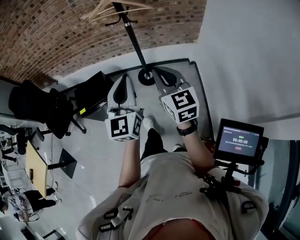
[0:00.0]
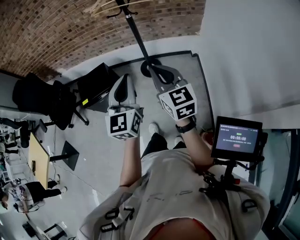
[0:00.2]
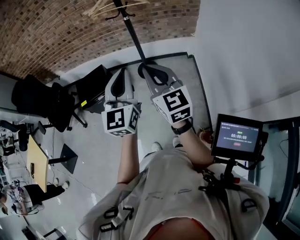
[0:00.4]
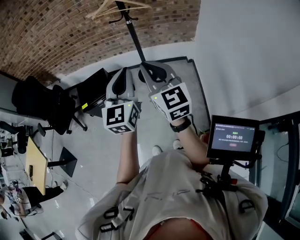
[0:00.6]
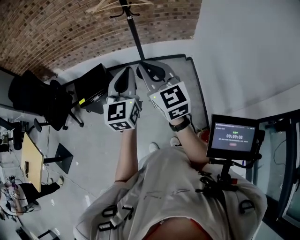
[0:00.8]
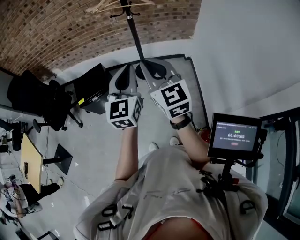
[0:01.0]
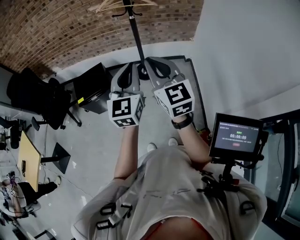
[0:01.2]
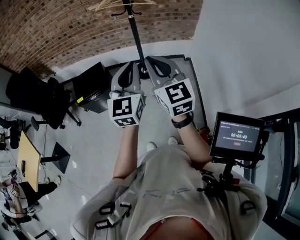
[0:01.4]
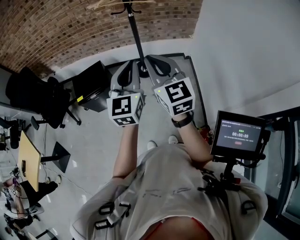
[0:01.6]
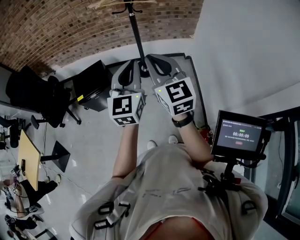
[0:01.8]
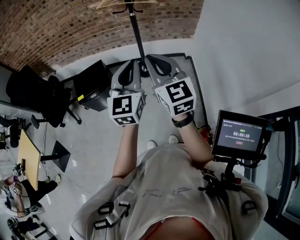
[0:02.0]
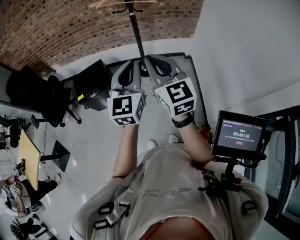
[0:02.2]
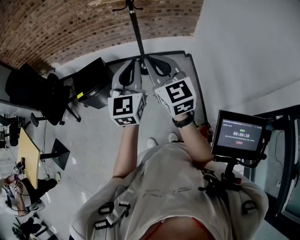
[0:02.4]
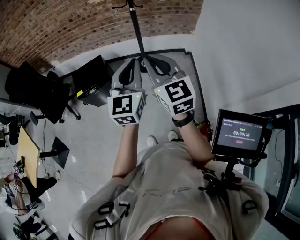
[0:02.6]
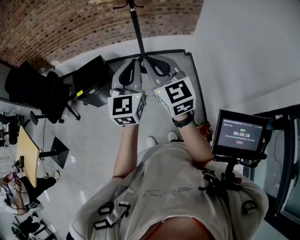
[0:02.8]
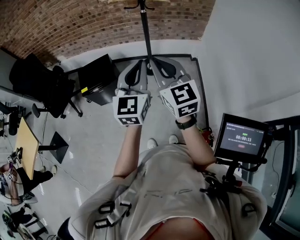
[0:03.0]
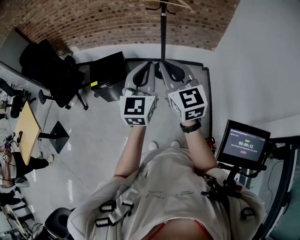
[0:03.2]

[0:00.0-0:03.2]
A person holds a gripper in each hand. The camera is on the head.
0.0 to 1.6 s: The left gripper moves backward, roughly 5 cm. The right gripper goes roughly 15 cm backward, to the left and upward.
1.6 to 3.2 s: The grippers stay close to where they were, moving slightly.

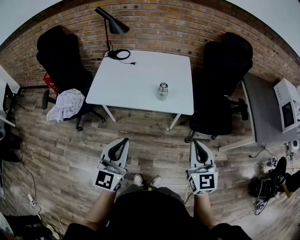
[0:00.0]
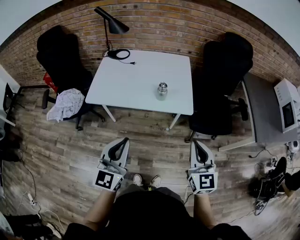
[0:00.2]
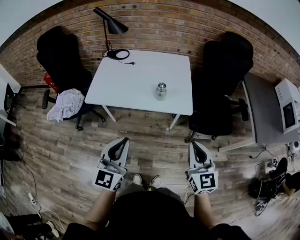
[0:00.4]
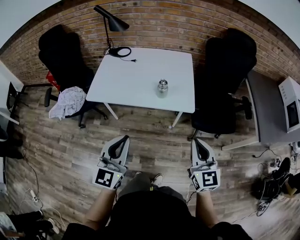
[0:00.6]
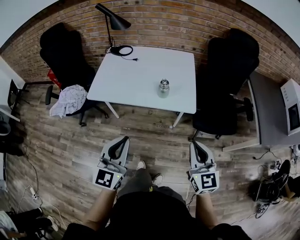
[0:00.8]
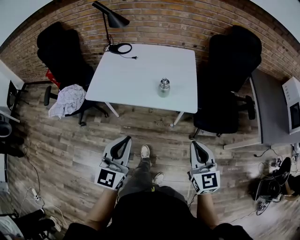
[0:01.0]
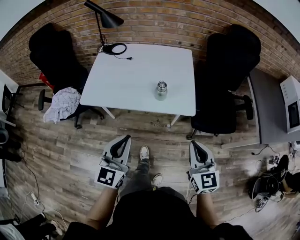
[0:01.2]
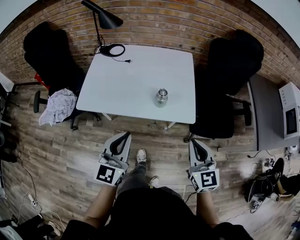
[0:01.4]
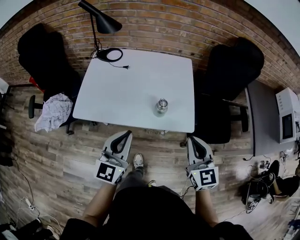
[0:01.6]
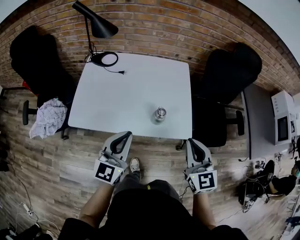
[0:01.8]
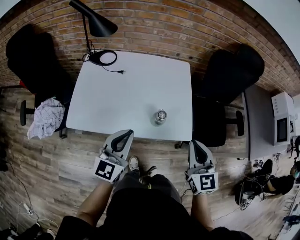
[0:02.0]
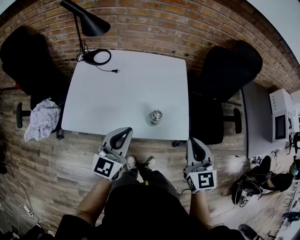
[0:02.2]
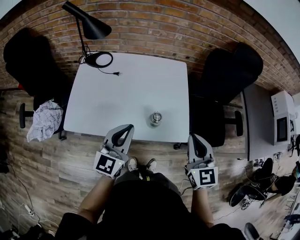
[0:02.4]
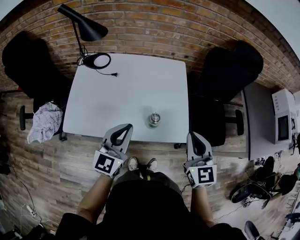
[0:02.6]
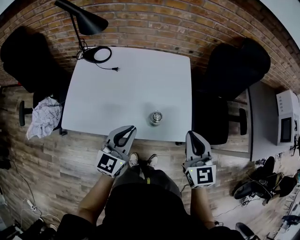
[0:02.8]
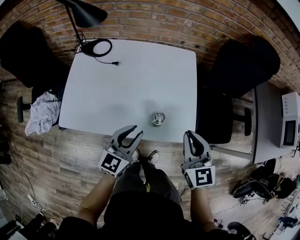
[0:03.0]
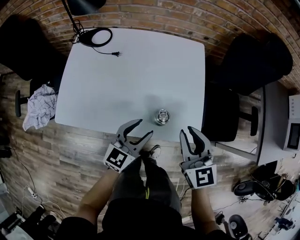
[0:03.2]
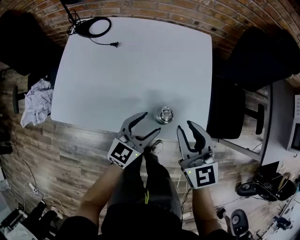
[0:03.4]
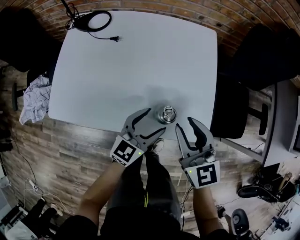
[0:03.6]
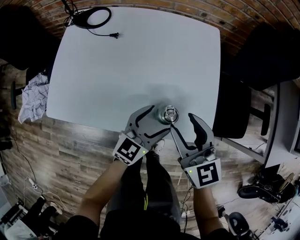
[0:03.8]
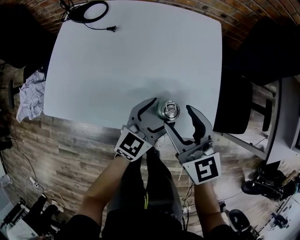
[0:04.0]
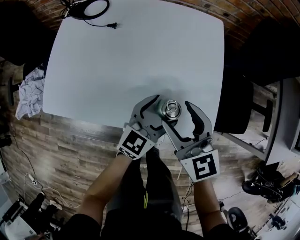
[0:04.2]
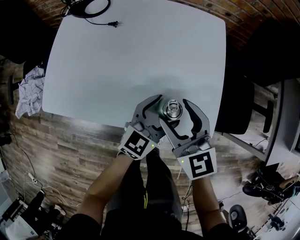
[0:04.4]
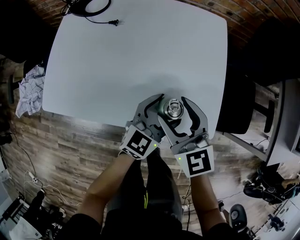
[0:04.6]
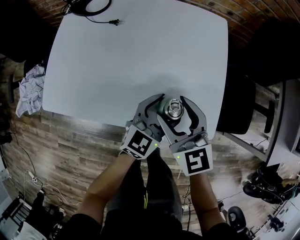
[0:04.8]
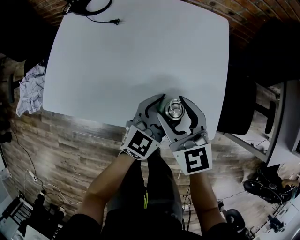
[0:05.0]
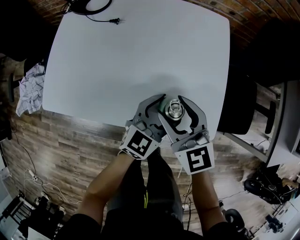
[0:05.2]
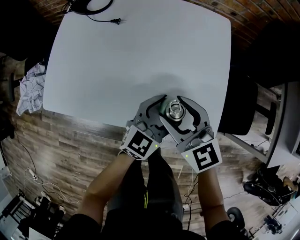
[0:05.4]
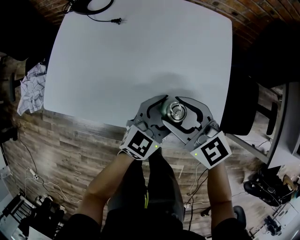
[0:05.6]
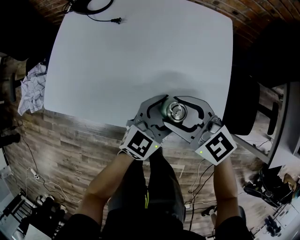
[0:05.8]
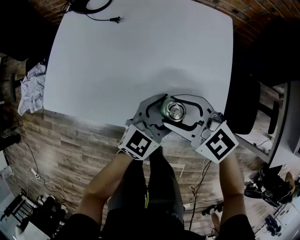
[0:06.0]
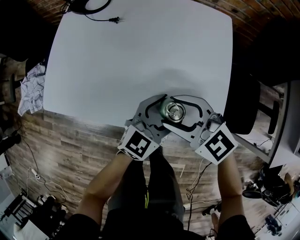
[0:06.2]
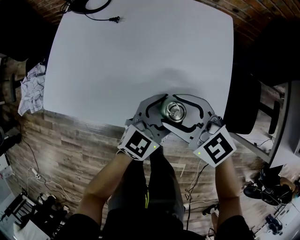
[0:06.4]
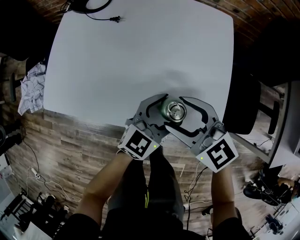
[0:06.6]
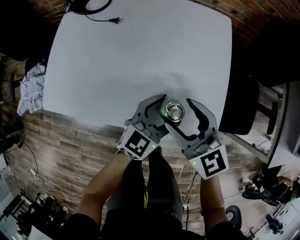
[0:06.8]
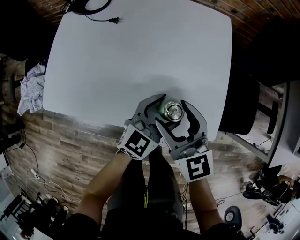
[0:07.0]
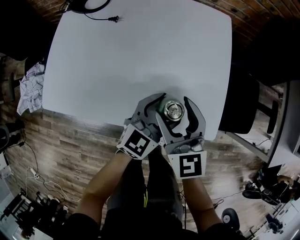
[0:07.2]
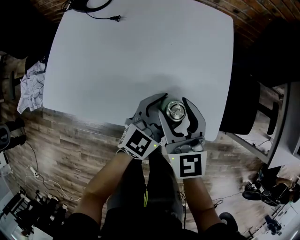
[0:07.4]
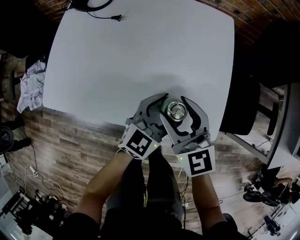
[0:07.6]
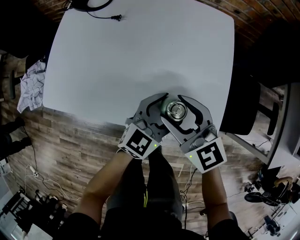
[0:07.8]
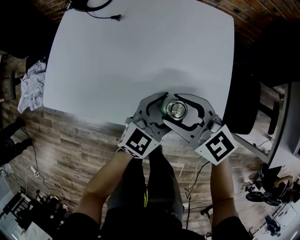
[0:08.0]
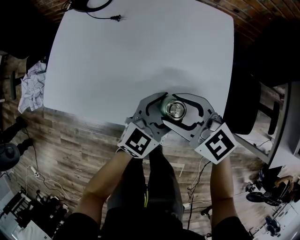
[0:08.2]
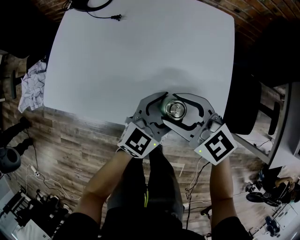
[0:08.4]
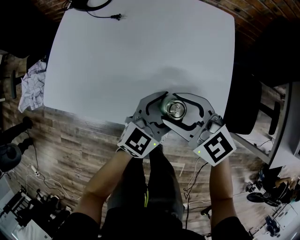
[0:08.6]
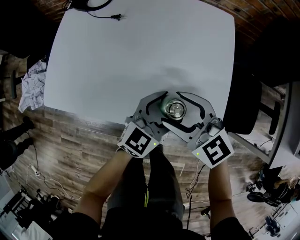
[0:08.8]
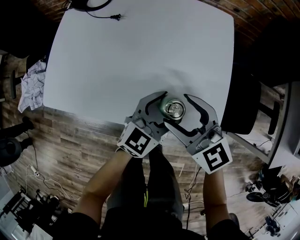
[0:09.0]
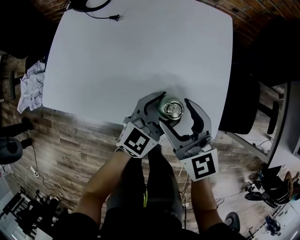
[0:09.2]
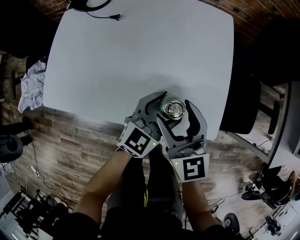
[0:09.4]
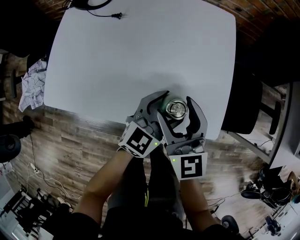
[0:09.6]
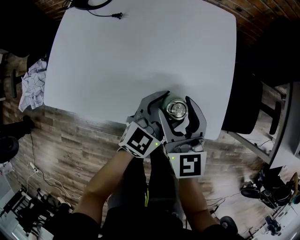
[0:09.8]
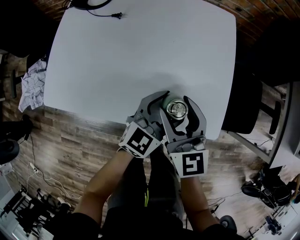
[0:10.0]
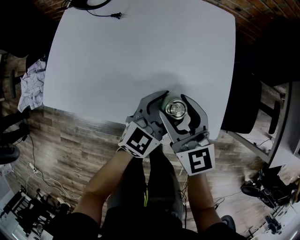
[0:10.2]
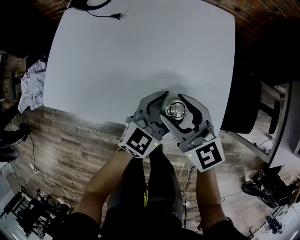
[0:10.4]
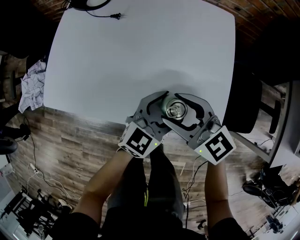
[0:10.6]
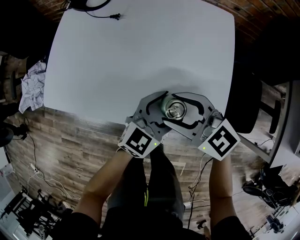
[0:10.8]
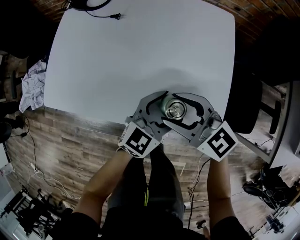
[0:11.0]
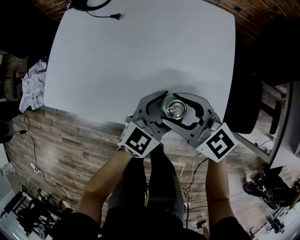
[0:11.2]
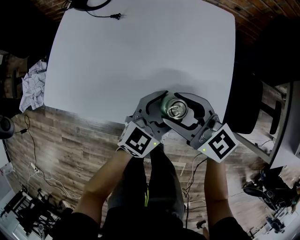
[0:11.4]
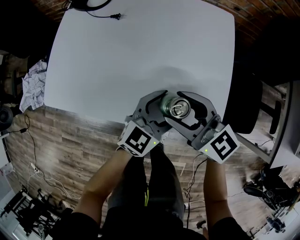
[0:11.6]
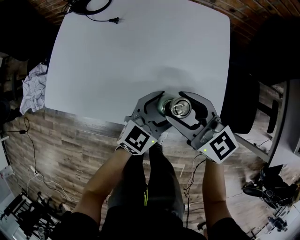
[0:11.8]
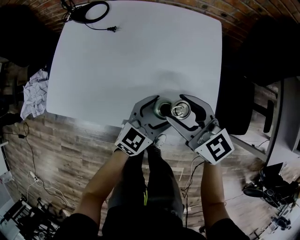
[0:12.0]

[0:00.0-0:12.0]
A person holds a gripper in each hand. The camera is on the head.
0.0 to 1.6 s: The grippers both shift forward by some 20 cm.
1.6 to 3.0 s: The left gripper heads forward and downward, covering approximately 15 cm. The right gripper travels forward by approximately 15 cm.
3.0 to 4.4 s: The left gripper is displaced downward, to the right and forward by about 15 cm, and opens up; the right gripper goes about 15 cm downward, to the left and forward, and opens.
4.4 to 6.0 s: The right gripper changes its angle by some 40 degrees.
6.0 to 7.6 s: The right gripper swivels roughly 40 degrees.

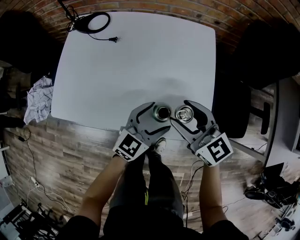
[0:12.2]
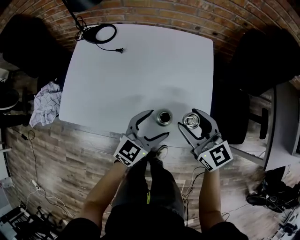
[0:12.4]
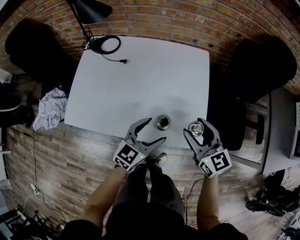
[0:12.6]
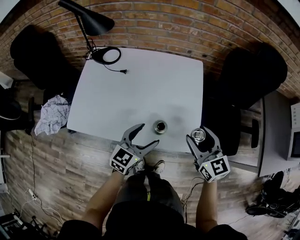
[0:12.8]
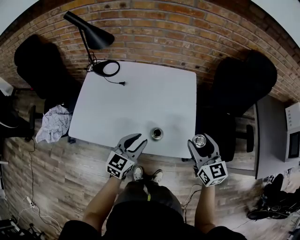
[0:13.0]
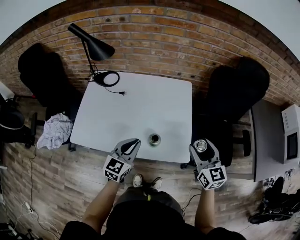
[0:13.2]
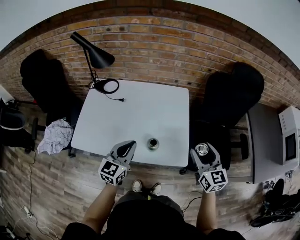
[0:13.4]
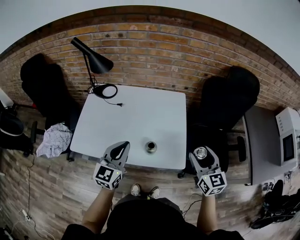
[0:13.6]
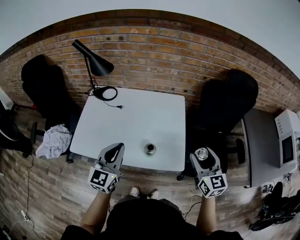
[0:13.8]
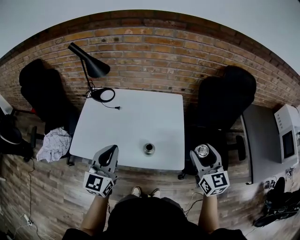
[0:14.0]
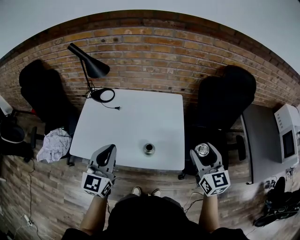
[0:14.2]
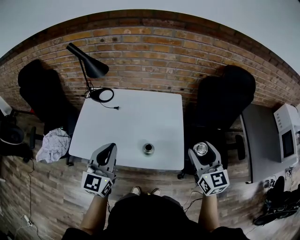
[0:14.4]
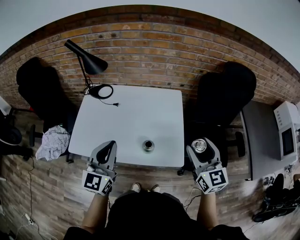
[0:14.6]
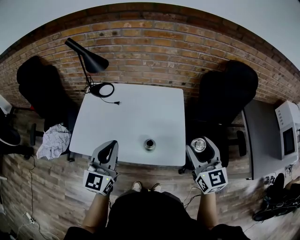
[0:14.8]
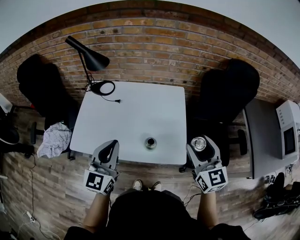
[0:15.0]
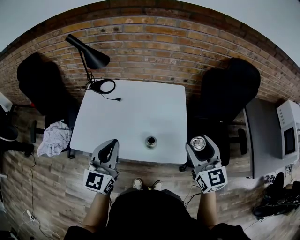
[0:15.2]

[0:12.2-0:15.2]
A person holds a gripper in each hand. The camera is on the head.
12.2 to 13.8 s: The right gripper heads to the right and upward, covering some 25 cm, and turns by some 30 degrees. The left gripper travels upward and to the left by approximately 25 cm, rotates approximately 30 degrees, and closes up.
13.8 to 15.2 s: The right gripper changes place by about 5 cm.

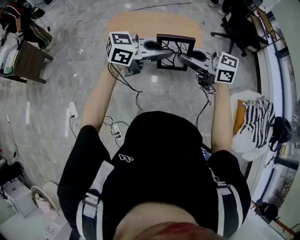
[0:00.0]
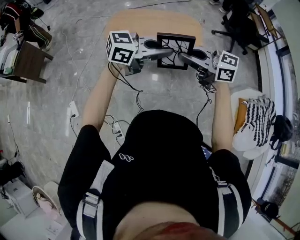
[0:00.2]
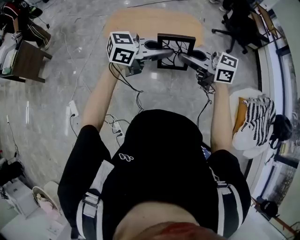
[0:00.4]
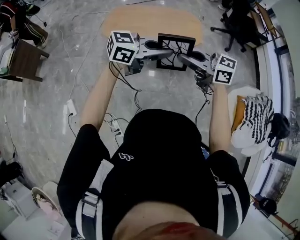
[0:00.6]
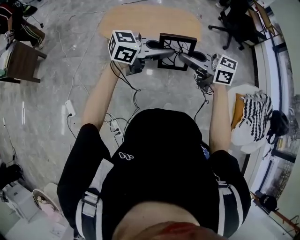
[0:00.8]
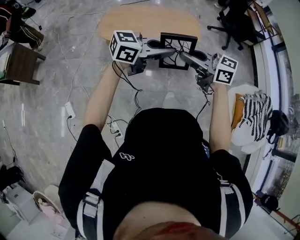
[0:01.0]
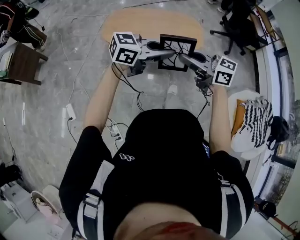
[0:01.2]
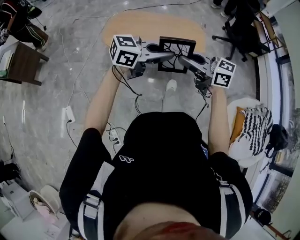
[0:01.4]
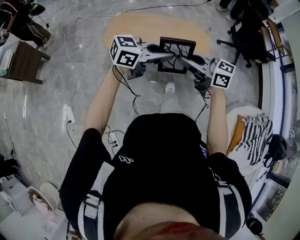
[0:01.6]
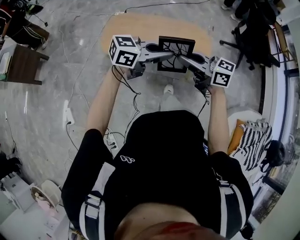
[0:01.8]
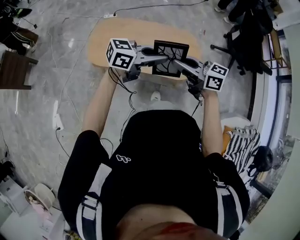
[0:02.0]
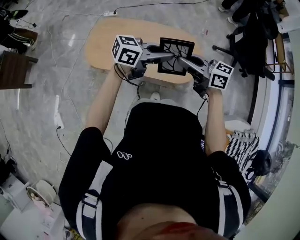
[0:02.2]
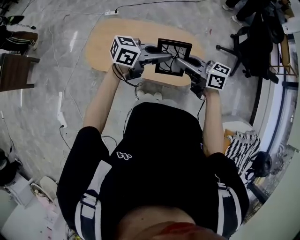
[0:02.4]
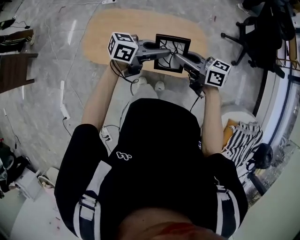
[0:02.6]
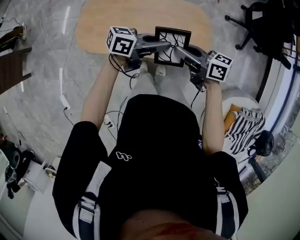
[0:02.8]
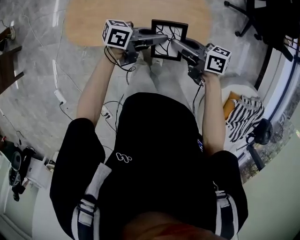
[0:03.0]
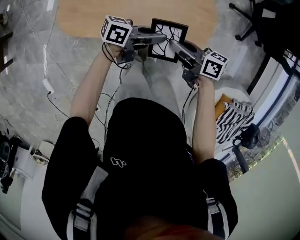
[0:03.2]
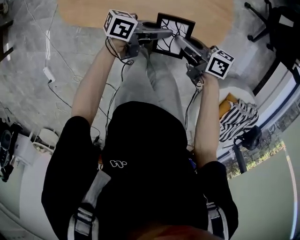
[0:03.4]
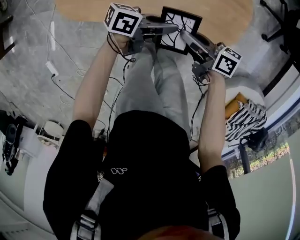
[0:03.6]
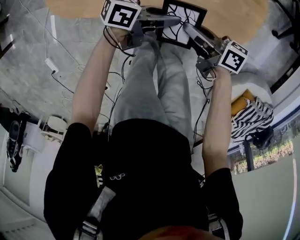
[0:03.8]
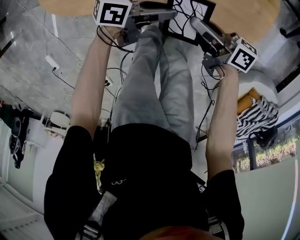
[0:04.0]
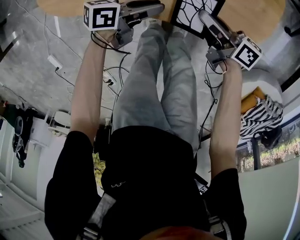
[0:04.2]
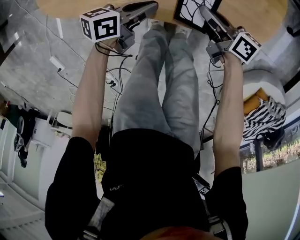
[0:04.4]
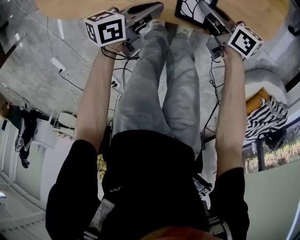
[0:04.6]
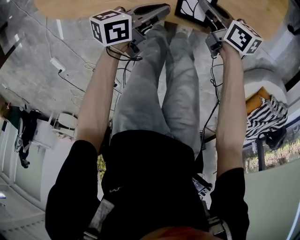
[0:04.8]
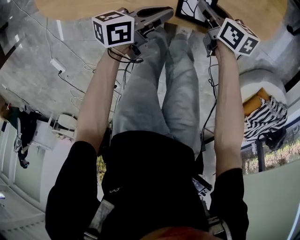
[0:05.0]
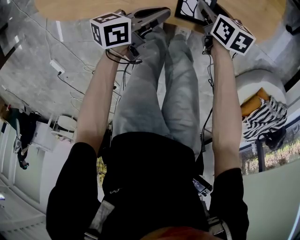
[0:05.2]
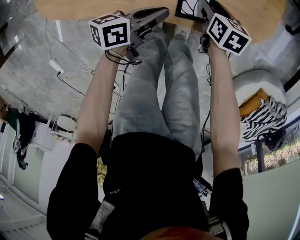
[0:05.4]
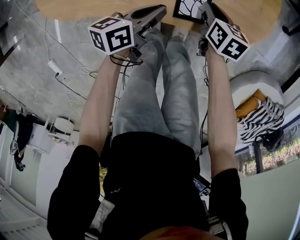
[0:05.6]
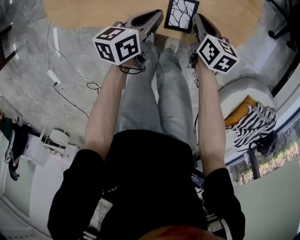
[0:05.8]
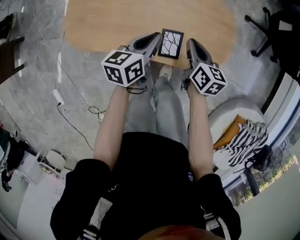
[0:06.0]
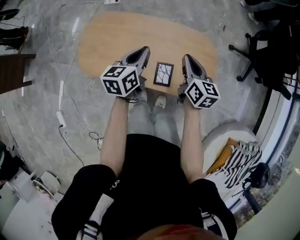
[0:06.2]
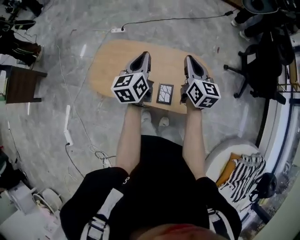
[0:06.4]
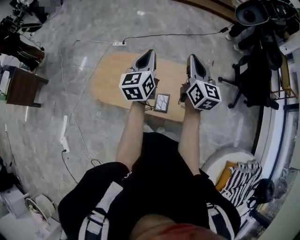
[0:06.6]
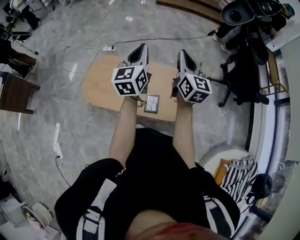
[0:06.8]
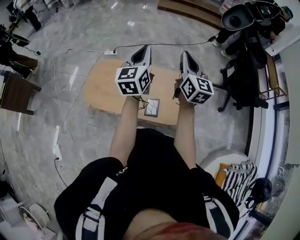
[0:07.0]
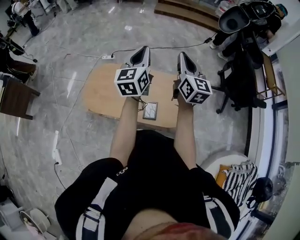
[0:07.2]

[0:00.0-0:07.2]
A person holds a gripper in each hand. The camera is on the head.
0.0 to 1.4 s: The left gripper shifts by approximately 10 cm, while the right gripper changes place by some 10 cm.
1.4 to 2.8 s: The left gripper moves approximately 40 cm, and swivels approximately 40 degrees. Meanwhile the right gripper shifts by roughly 40 cm, and rotates roughly 30 degrees.
2.8 to 4.4 s: The grippers both shift downward by roughly 35 cm. The left gripper turns by roughly 30 degrees, and opens, then closes again, while the right gripper changes its angle by roughly 20 degrees.
4.4 to 5.8 s: The left gripper shifts roughly 10 cm upward, and turns by about 20 degrees, while the right gripper moves roughly 5 cm, rotates roughly 40 degrees, and opens, then closes again.
5.8 to 7.2 s: The two grippers go some 50 cm upward. The left gripper angles its fingers upward, by roughly 30 degrees; the right gripper tilts its fingers some 50 degrees upward.
